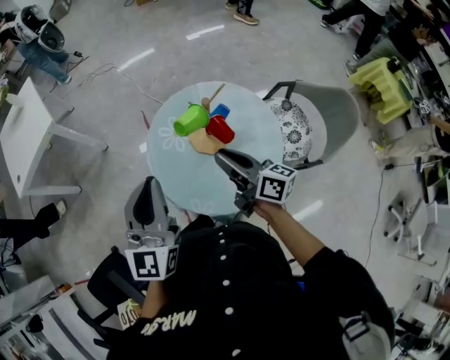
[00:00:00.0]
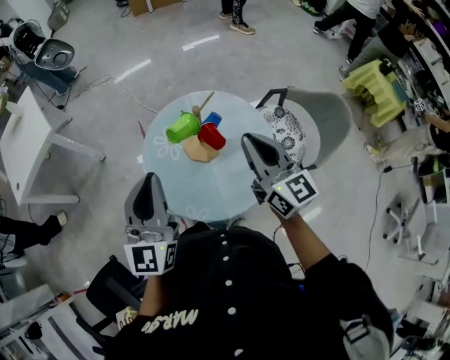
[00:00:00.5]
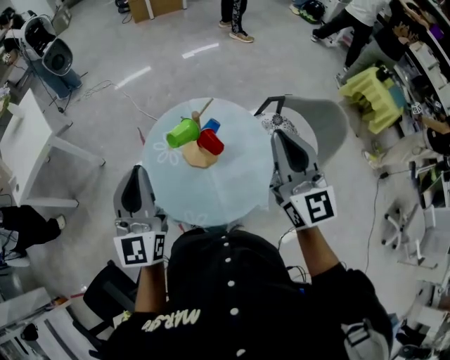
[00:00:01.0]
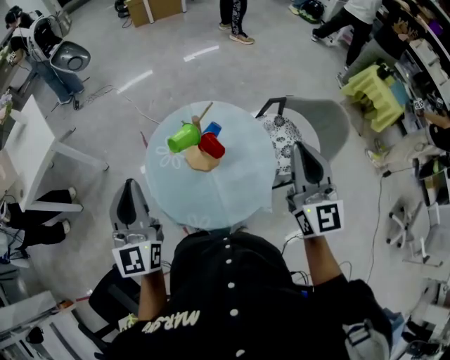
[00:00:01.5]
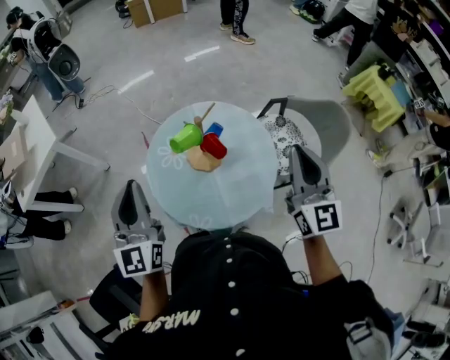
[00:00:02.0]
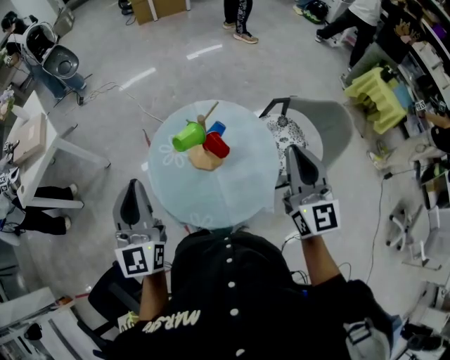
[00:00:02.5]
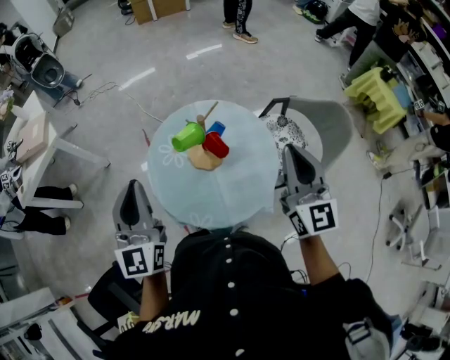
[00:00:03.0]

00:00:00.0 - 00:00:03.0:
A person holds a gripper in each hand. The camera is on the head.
00:00:00.0 - 00:00:01.5: The right gripper moves to the right and upward, roughly 25 cm, and rolls counterclockwise, seen from behind, by some 60 degrees.
00:00:01.5 - 00:00:03.0: The grippers move only a little.

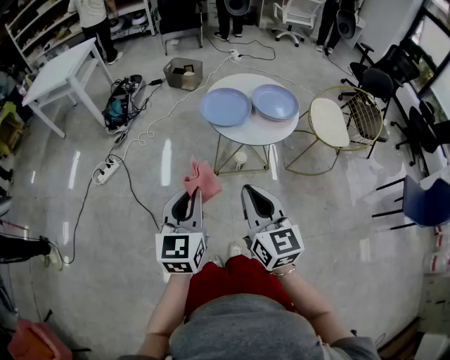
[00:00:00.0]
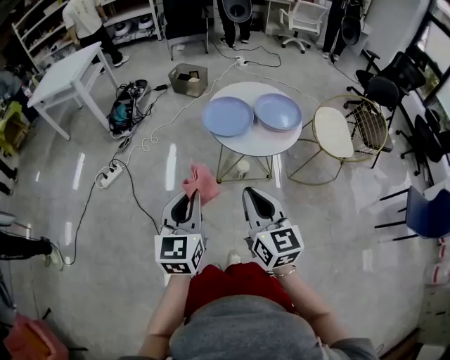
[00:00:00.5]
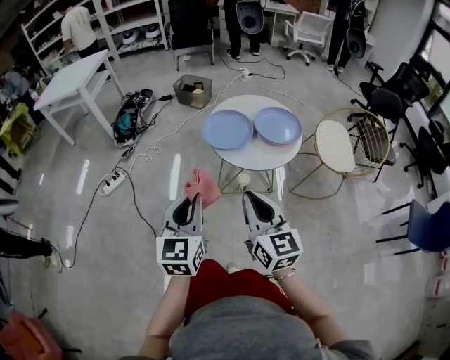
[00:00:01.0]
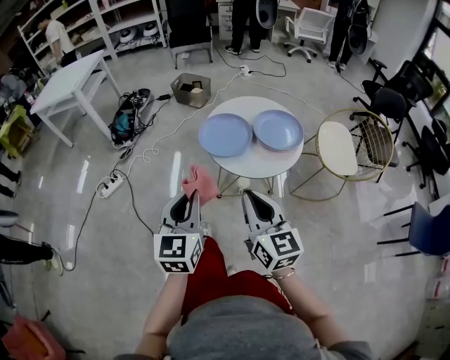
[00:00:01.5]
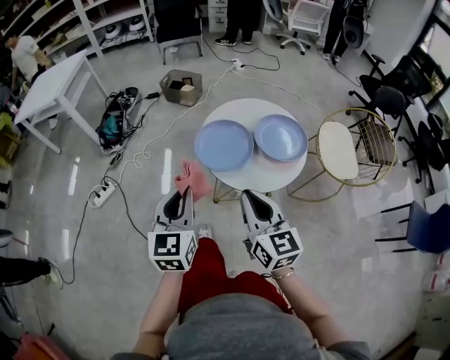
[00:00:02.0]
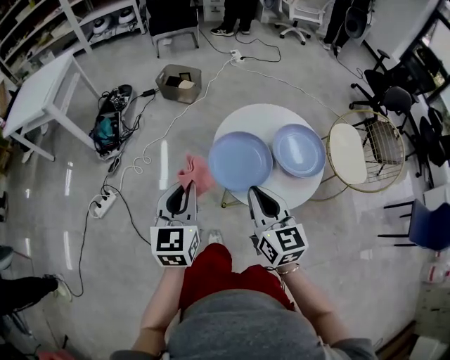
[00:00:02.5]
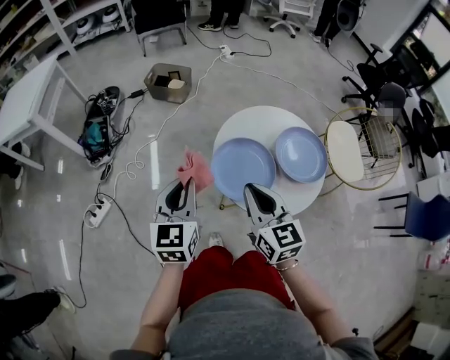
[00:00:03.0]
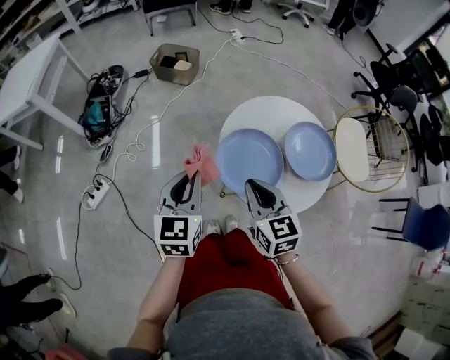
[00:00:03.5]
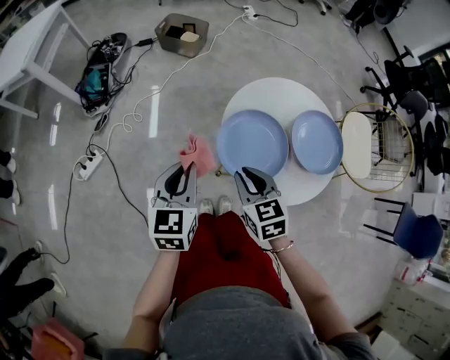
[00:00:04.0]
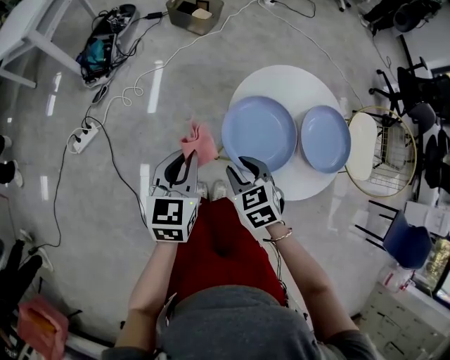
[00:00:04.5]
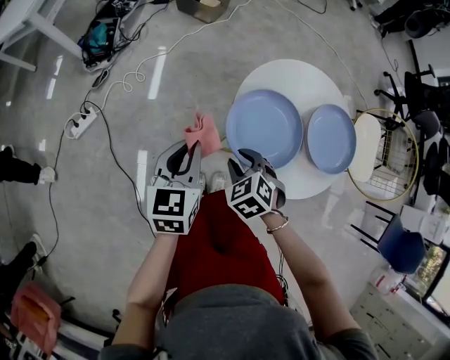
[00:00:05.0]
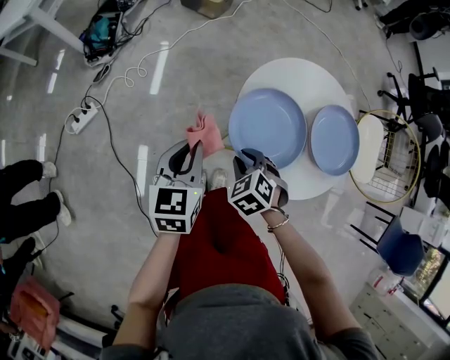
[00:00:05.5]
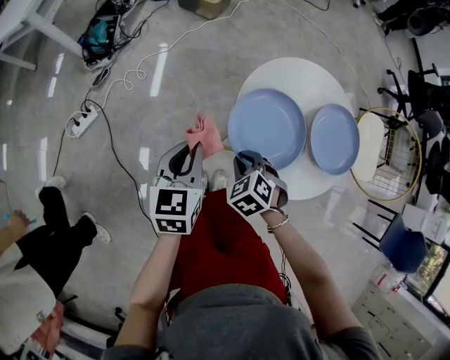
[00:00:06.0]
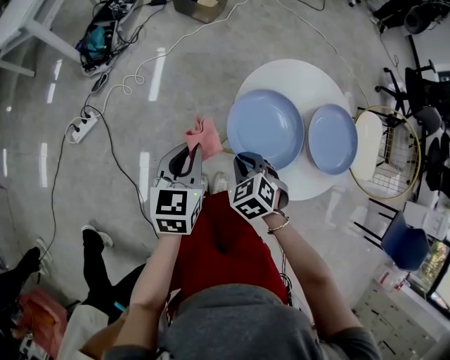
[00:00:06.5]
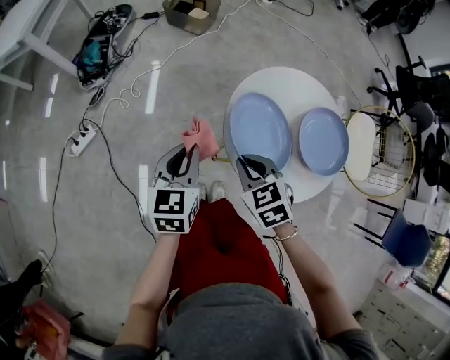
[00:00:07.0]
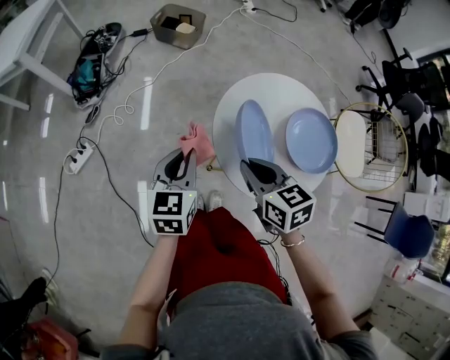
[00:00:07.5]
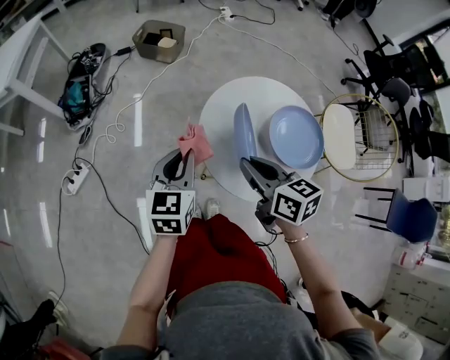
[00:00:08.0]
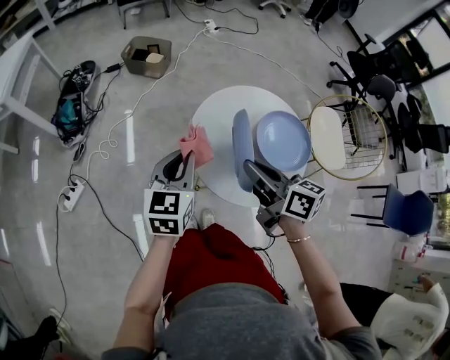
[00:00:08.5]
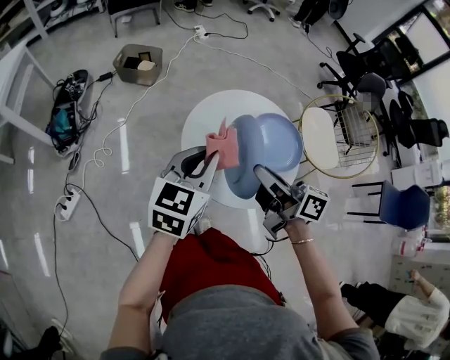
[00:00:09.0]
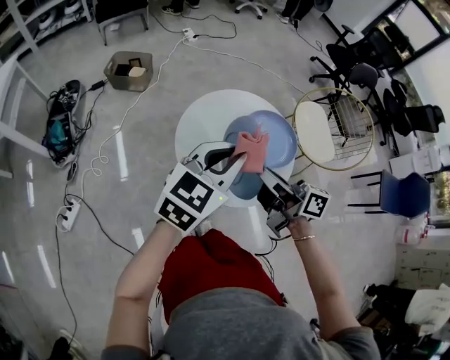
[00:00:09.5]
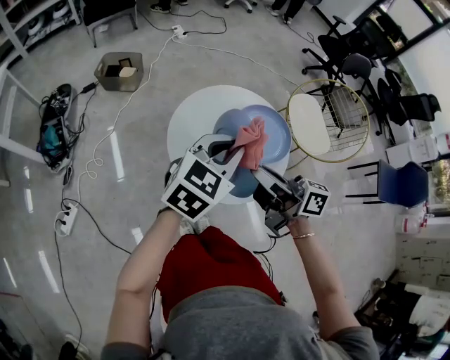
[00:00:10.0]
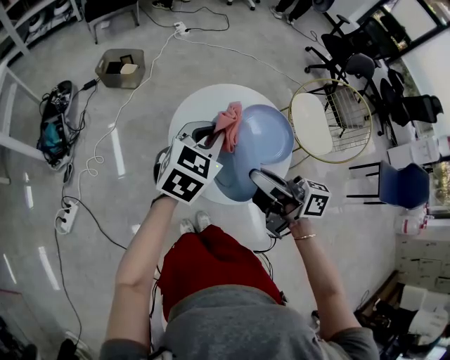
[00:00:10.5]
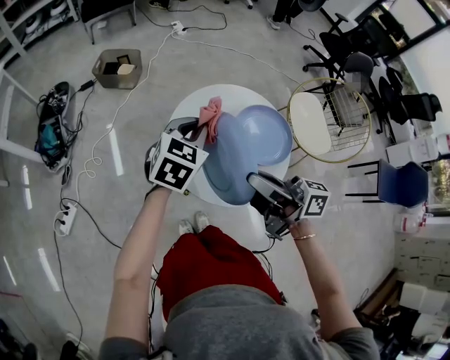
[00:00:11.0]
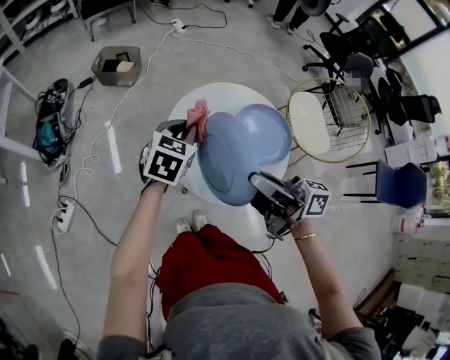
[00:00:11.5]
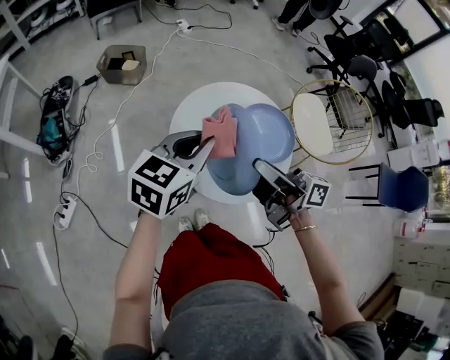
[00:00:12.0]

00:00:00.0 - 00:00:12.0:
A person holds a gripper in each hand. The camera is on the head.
00:00:00.0 - 00:00:02.0: The two grippers go approximately 20 cm forward.
00:00:02.0 - 00:00:04.0: Both grippers move forward, downward and to the left, roughly 25 cm. The right gripper angles its fingers downward, by about 30 degrees.
00:00:04.0 - 00:00:06.0: The right gripper goes about 10 cm downward, and swivels some 40 degrees. Meanwhile the left gripper moves downward, about 5 cm.
00:00:06.0 - 00:00:08.0: The right gripper is displaced upward by about 20 cm, and points its fingers roughly 40 degrees further upward. Meanwhile the left gripper moves upward and to the right, roughly 10 cm.
00:00:08.0 - 00:00:10.0: The left gripper heads to the right and upward, covering approximately 25 cm, and changes its angle by approximately 50 degrees; the right gripper travels upward and to the right by approximately 15 cm, and tips its fingers upward by some 30 degrees.
00:00:10.0 - 00:00:12.0: The left gripper is displaced to the left by some 5 cm, and reaches some 10 cm downward, then returns.

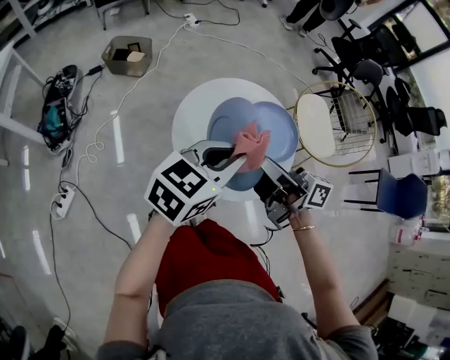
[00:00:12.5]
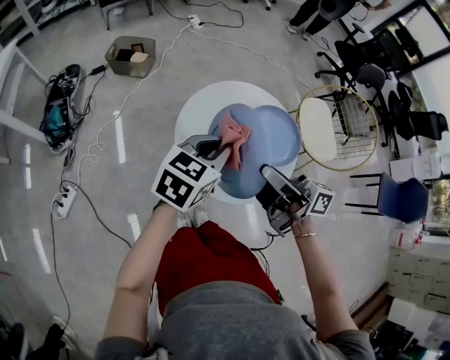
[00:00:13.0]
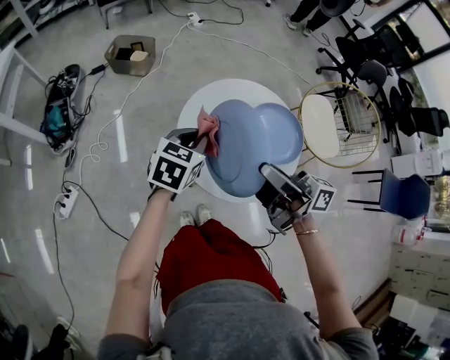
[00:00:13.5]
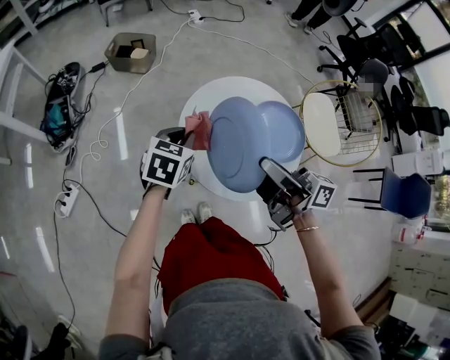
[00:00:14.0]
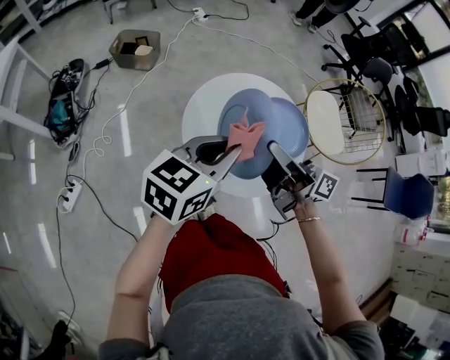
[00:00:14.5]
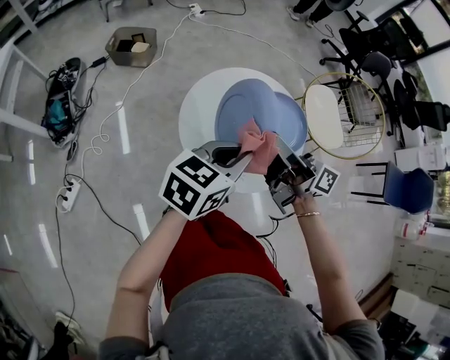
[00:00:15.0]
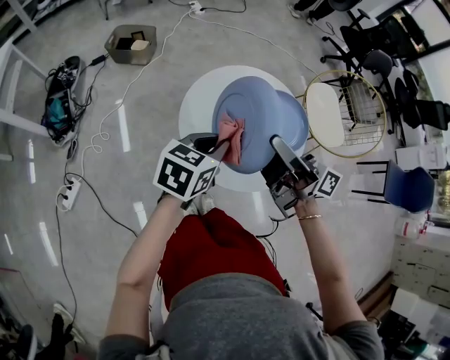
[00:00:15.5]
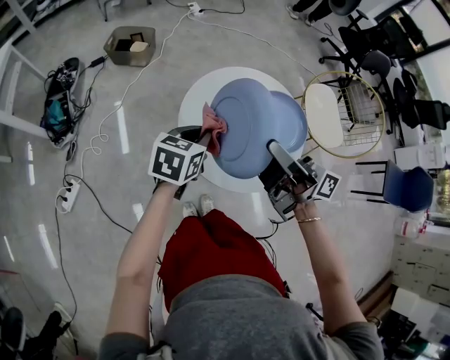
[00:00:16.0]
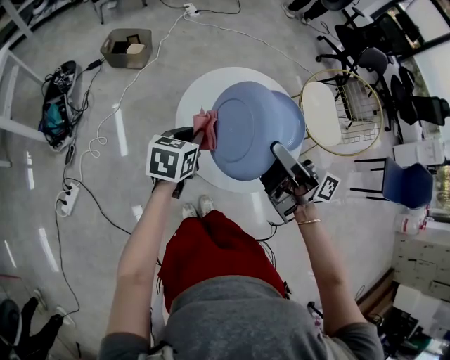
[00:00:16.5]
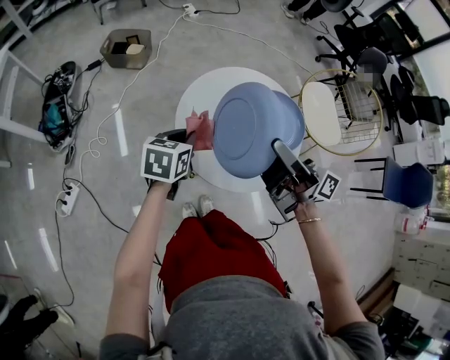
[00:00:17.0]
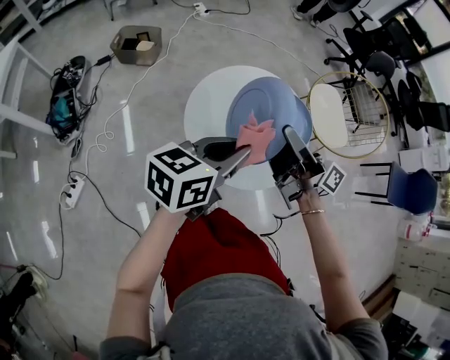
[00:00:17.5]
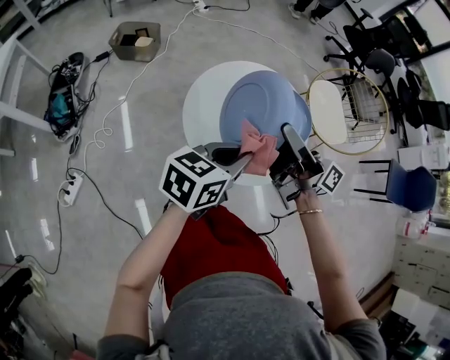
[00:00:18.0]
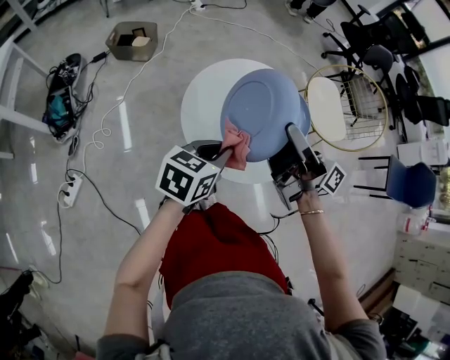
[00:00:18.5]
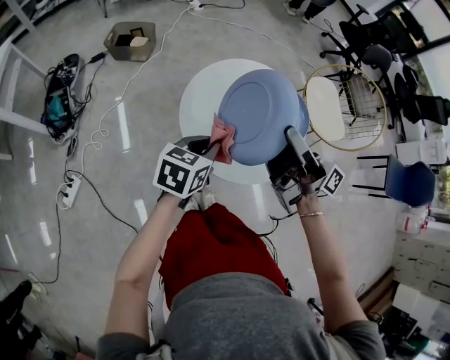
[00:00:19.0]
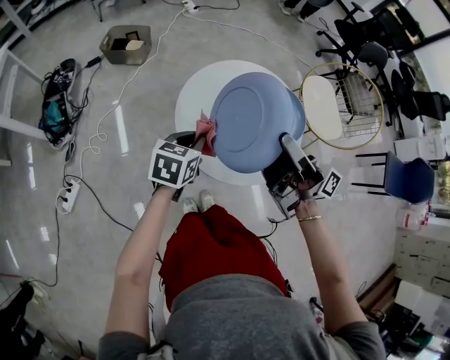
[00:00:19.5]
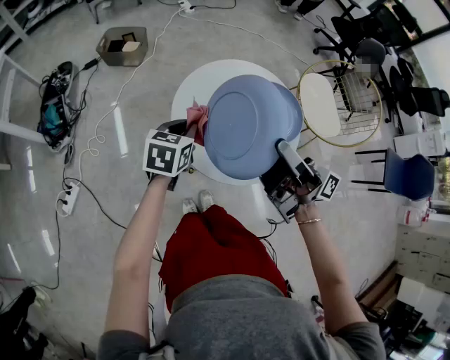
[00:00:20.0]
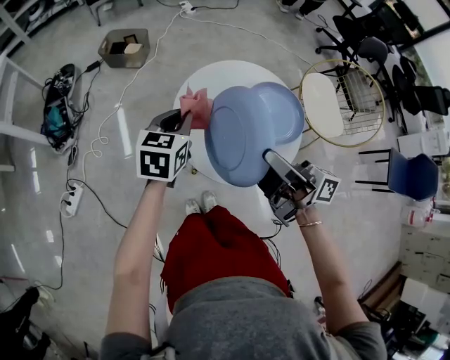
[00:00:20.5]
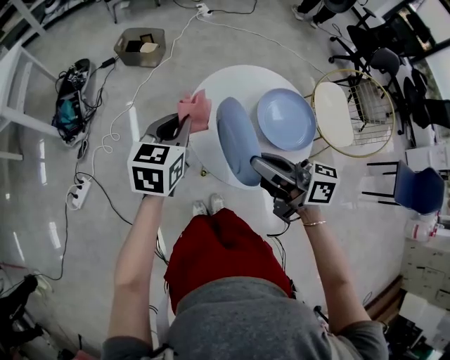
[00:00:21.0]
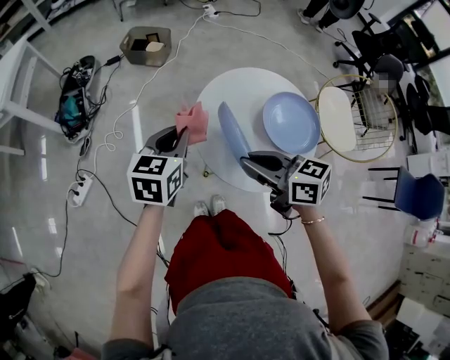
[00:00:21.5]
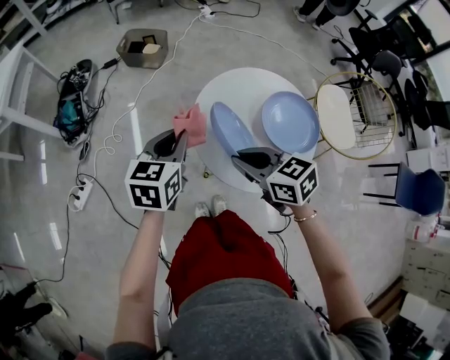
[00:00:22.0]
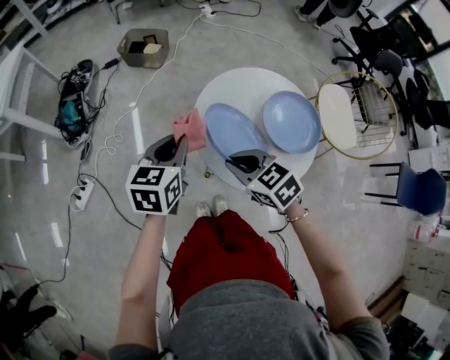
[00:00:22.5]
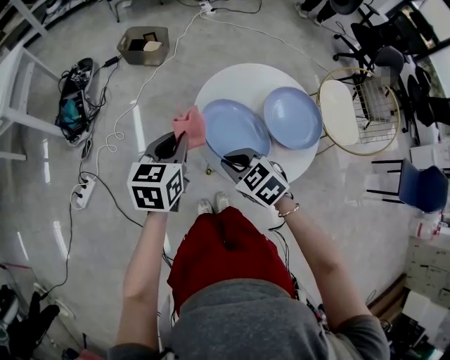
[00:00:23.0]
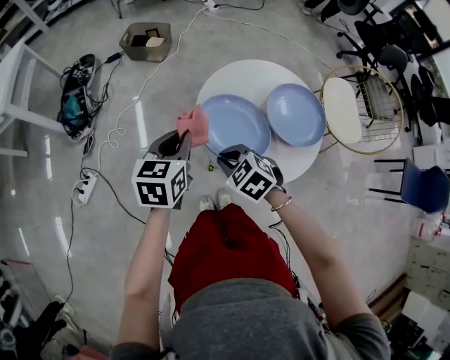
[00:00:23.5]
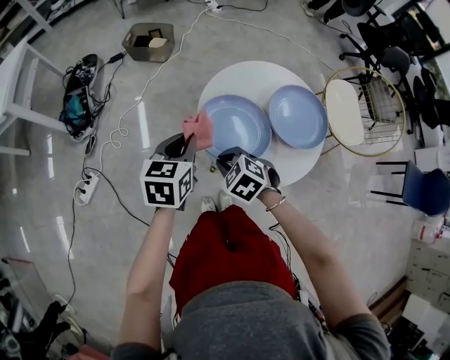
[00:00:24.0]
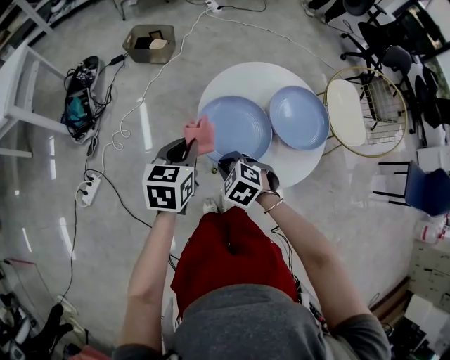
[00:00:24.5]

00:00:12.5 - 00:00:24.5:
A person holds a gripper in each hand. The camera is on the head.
00:00:12.5 - 00:00:14.5: The left gripper moves about 15 cm downward and comes back.
00:00:14.5 - 00:00:16.5: The left gripper heads downward, covering about 15 cm, and rotates some 20 degrees.
00:00:16.5 - 00:00:18.5: The left gripper shifts roughly 10 cm backward and to the right, and reaches about 15 cm upward, then returns.
00:00:18.5 - 00:00:20.5: The right gripper ends up approximately 5 cm from where it was. The left gripper is displaced forward and to the left by some 10 cm, and rotates approximately 20 degrees.
00:00:20.5 - 00:00:22.5: The left gripper travels to the left by roughly 10 cm, while the right gripper is displaced downward and to the left by about 20 cm, and angles its fingers downward, by approximately 60 degrees.
00:00:22.5 - 00:00:24.5: The right gripper is displaced downward by some 10 cm, and turns by approximately 30 degrees.
